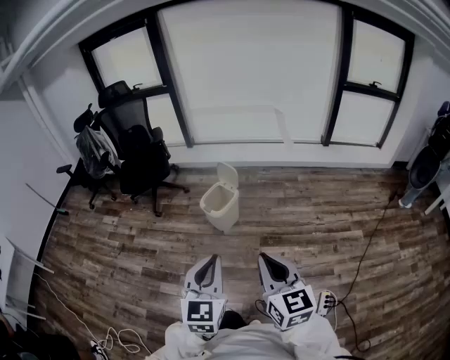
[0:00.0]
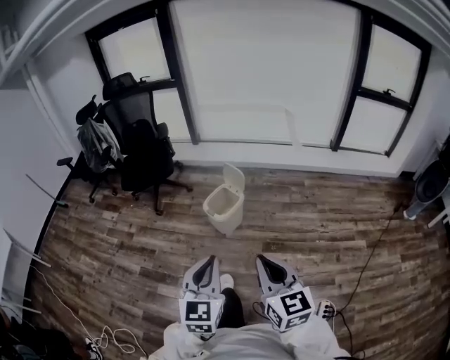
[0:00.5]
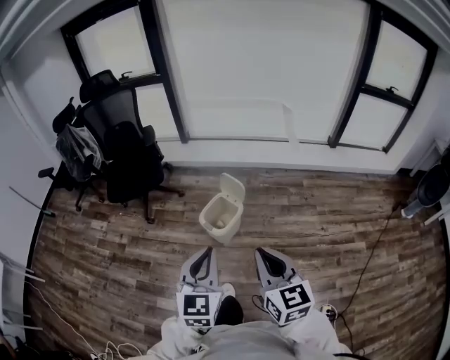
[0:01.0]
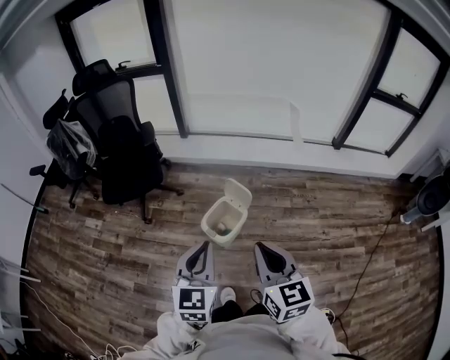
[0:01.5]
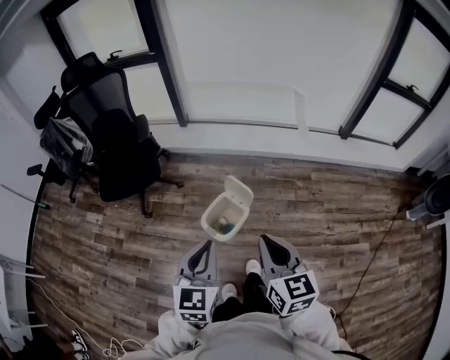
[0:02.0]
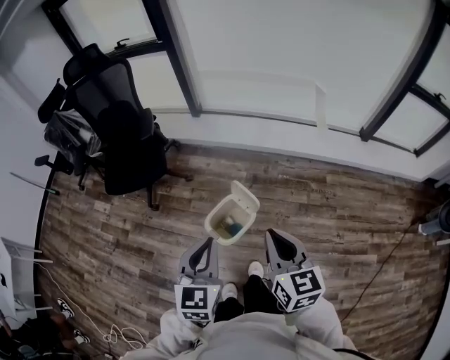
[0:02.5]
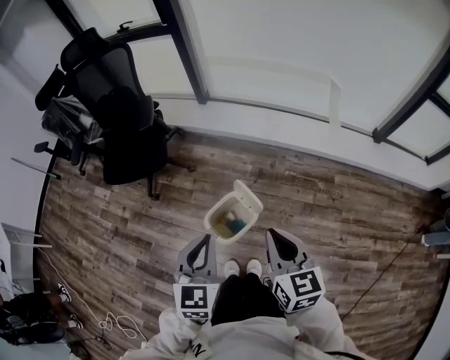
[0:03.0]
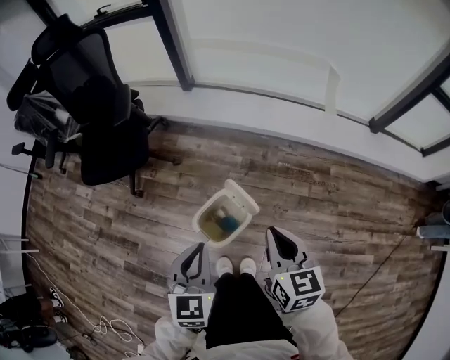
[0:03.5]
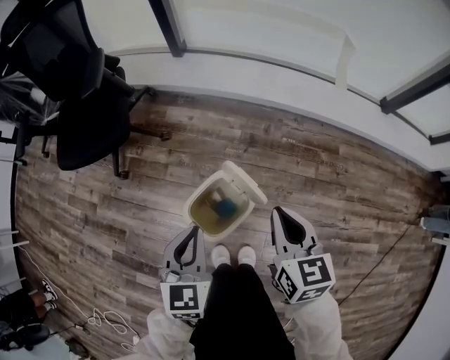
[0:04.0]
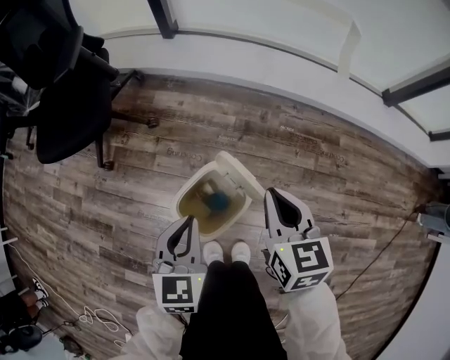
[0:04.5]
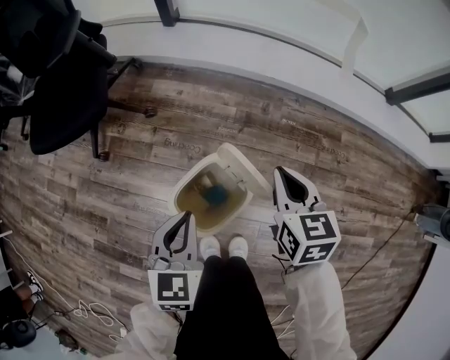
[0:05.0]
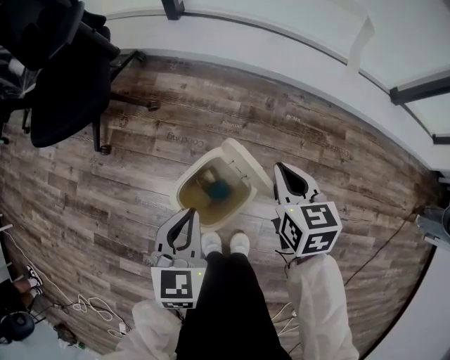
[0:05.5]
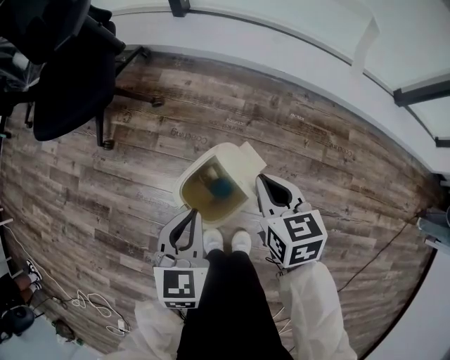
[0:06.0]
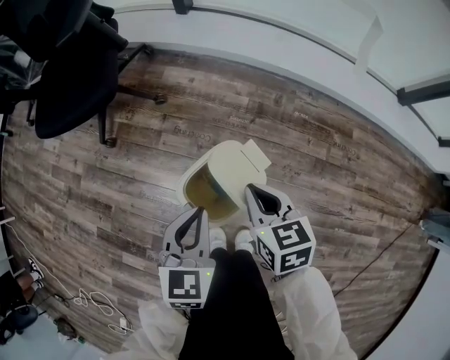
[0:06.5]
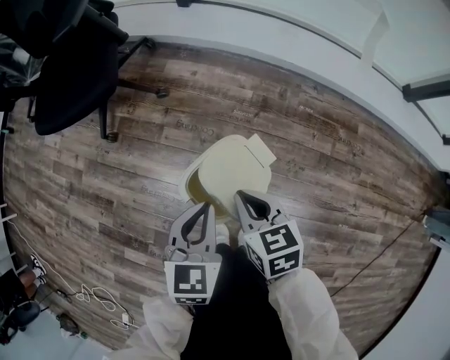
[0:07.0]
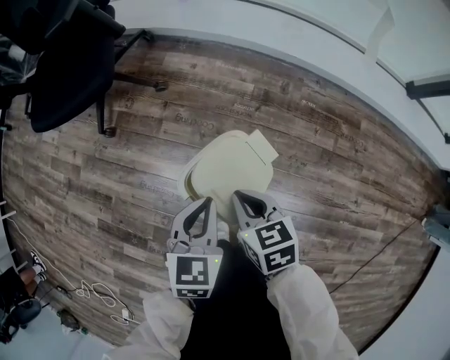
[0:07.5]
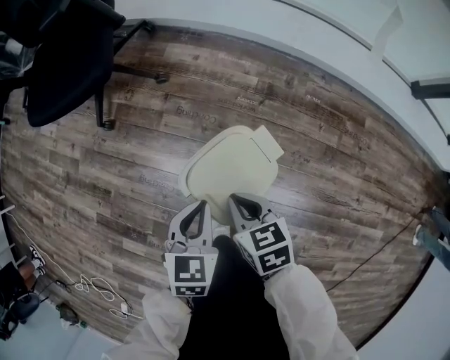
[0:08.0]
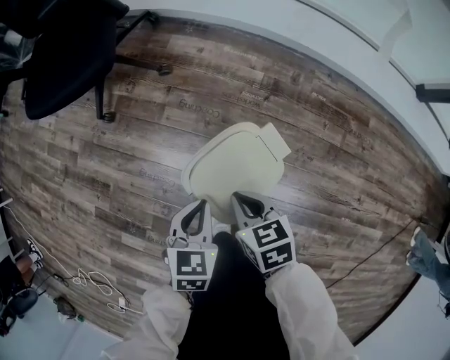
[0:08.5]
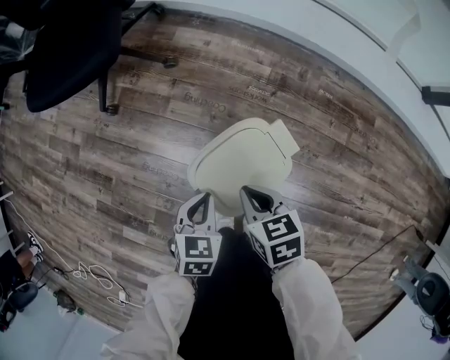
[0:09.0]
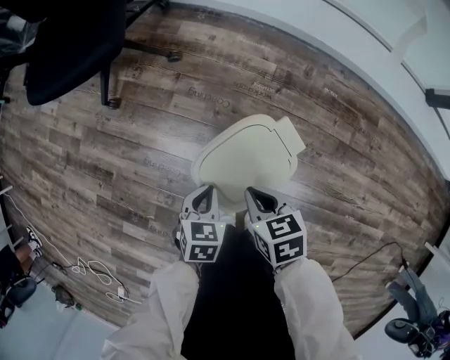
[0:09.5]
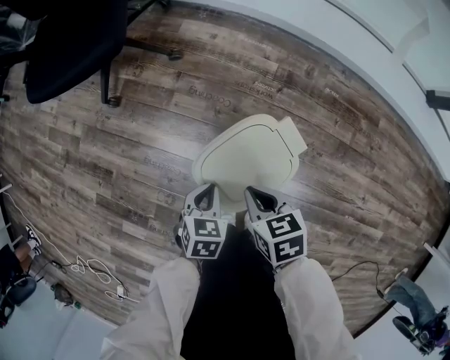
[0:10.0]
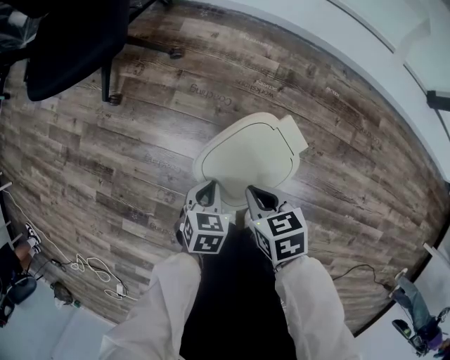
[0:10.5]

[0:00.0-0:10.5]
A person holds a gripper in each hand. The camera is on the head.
0:00.0 to 0:02.0: The pair of grippers is taken forward, approximately 50 cm.
0:02.0 to 0:04.0: Both grippers travel together downward and forward, roughly 40 cm.
0:04.0 to 0:06.5: The left gripper shifts approximately 15 cm downward; the right gripper goes roughly 20 cm downward and to the left.
0:06.5 to 0:08.5: The left gripper goes some 10 cm downward; the right gripper is displaced downward and to the left by some 15 cm.
0:08.5 to 0:10.5: The left gripper heads downward, covering roughly 10 cm.

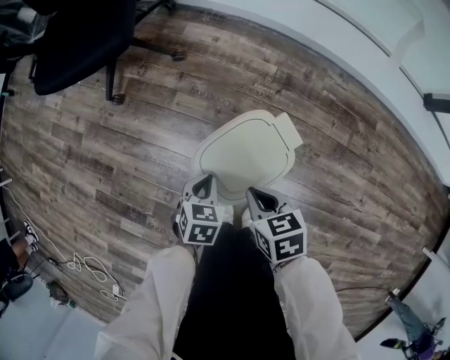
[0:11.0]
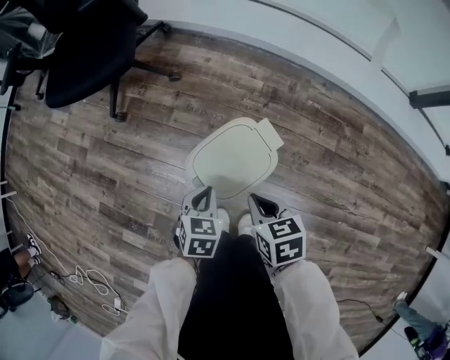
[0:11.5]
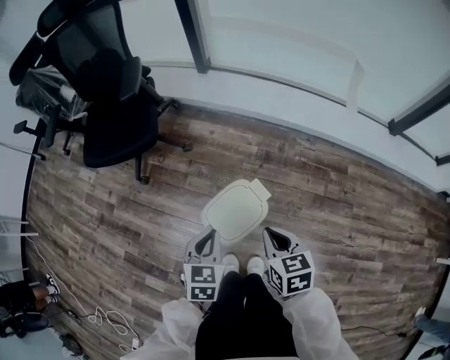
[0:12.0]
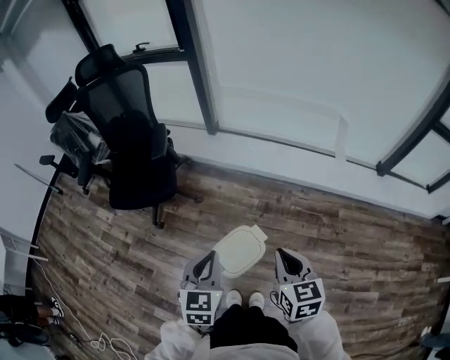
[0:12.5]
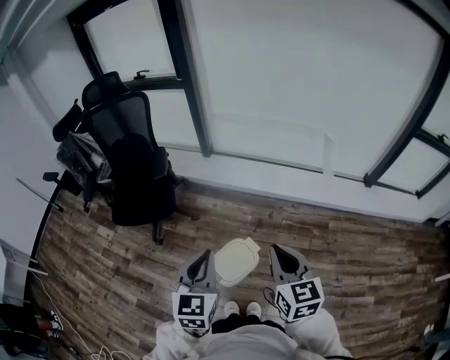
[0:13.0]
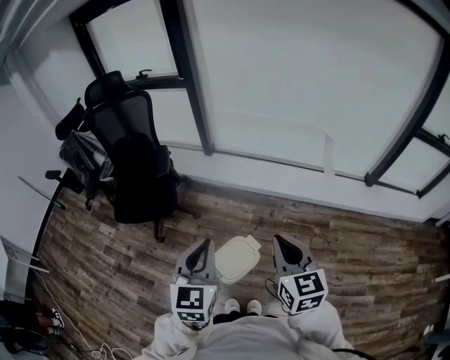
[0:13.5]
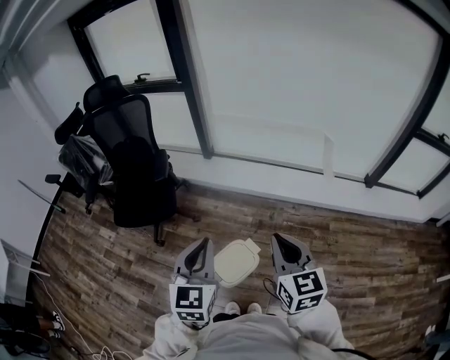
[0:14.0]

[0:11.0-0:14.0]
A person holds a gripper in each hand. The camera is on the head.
0:11.0 to 0:12.5: The two grippers go some 50 cm upward. The right gripper rotates approximately 40 degrees. Meanwhile the left gripper points its fingers some 30 degrees further upward.
0:12.5 to 0:14.0: Both grippers move upward, approximately 15 cm.

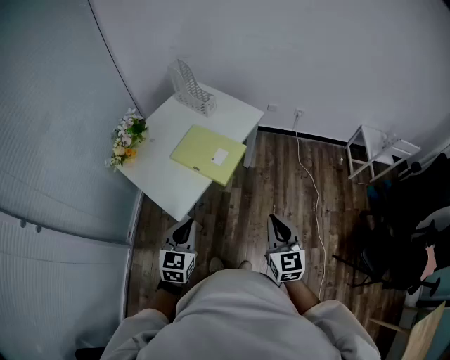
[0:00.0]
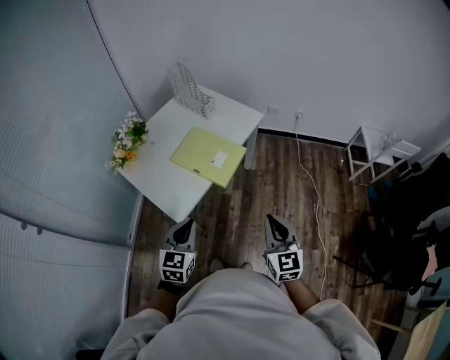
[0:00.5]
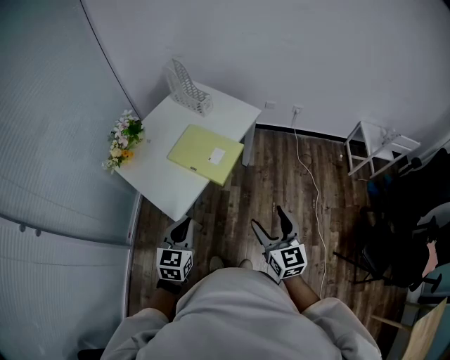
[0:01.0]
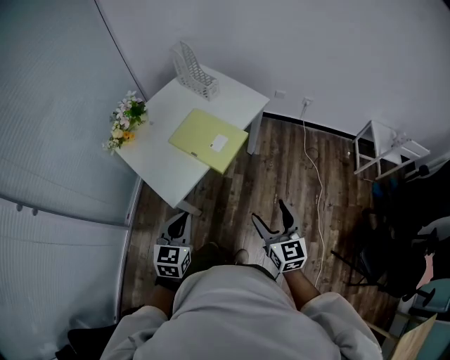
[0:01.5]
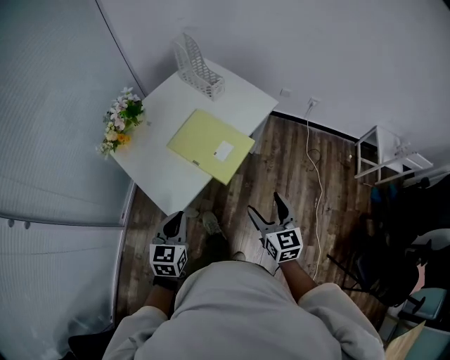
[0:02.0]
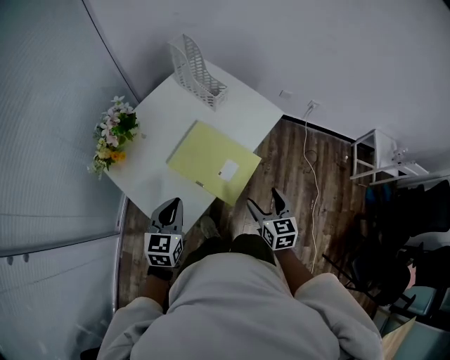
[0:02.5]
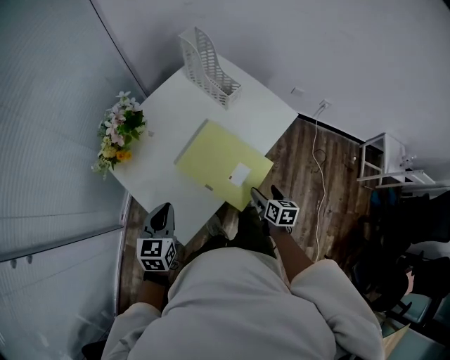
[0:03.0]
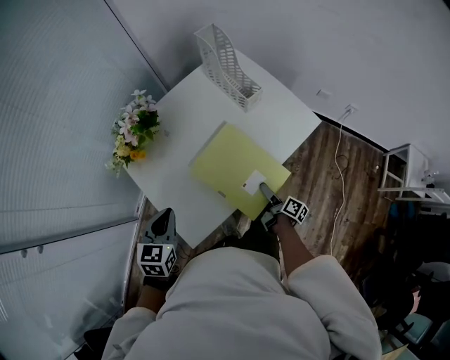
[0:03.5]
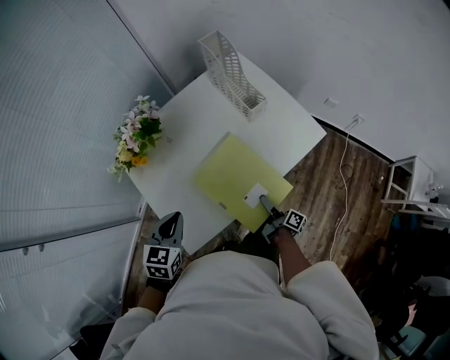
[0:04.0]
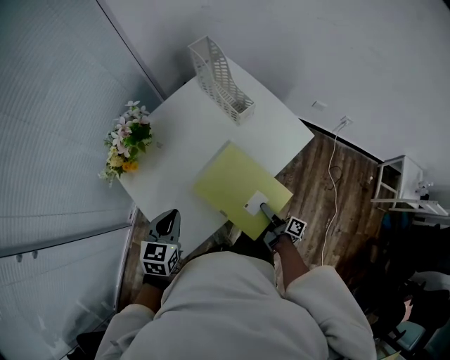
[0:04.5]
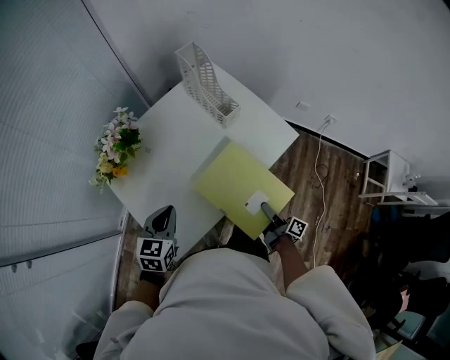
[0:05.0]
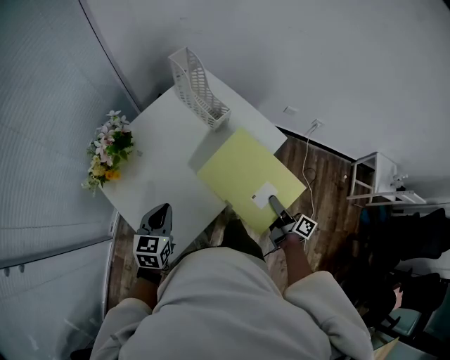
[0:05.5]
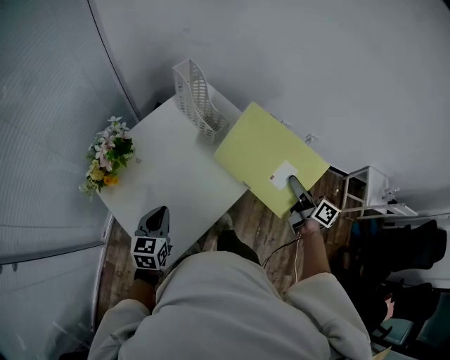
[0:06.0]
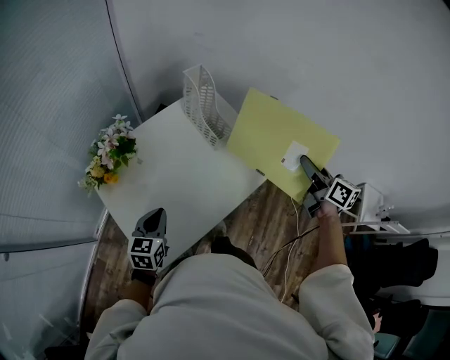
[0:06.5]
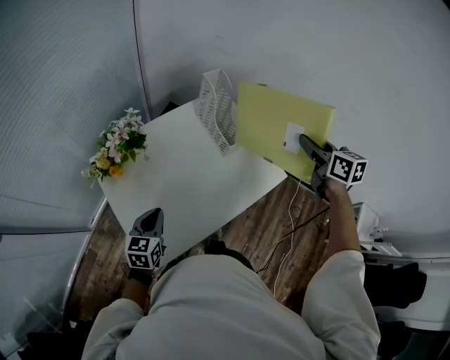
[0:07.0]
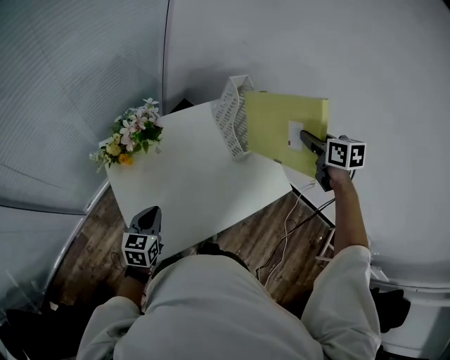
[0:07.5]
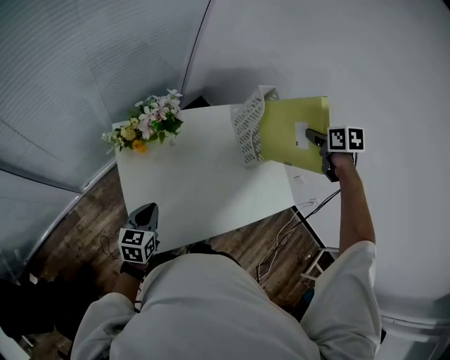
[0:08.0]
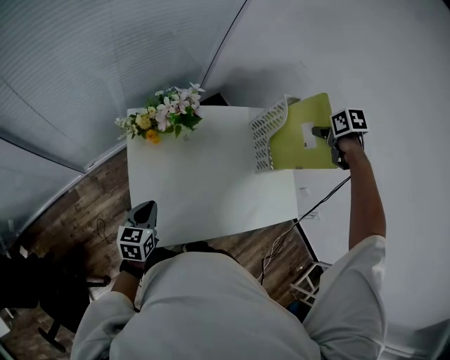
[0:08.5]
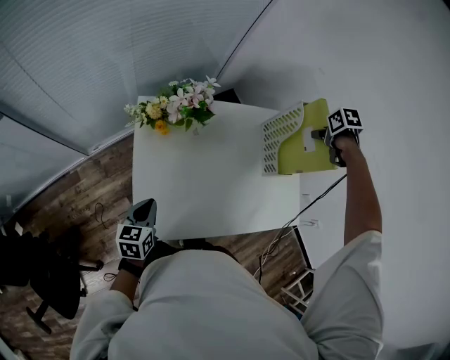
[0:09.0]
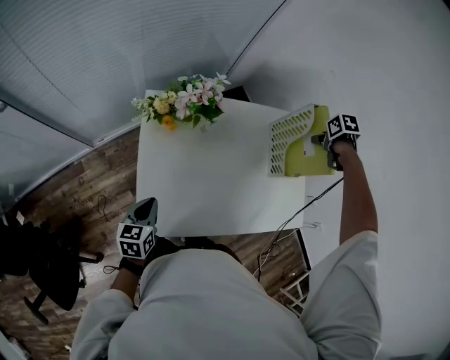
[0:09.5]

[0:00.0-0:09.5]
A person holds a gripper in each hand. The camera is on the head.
0:00.0 to 0:02.0: The right gripper goes approximately 15 cm forward and downward, and opens up, while the left gripper is displaced forward and downward by approximately 10 cm.
0:02.0 to 0:04.0: The left gripper travels forward by some 20 cm. Meanwhile the right gripper moves downward and forward, approximately 35 cm, rotates around the line of its fingers by approximately 80 degrees, clockwise from behind, and closes.
0:04.0 to 0:05.5: The left gripper ends up roughly 5 cm from where it was, while the right gripper heads upward and to the right, covering some 20 cm, and changes its angle by some 30 degrees.
0:05.5 to 0:07.5: The right gripper travels forward and upward by some 40 cm, and twists approximately 60 degrees counterclockwise, seen from behind. The left gripper shifts roughly 10 cm to the left, and turns by about 20 degrees.
0:07.5 to 0:09.5: The left gripper changes place by roughly 10 cm, and turns by some 30 degrees, while the right gripper shifts by about 25 cm, and tips its fingers downward by approximately 40 degrees.

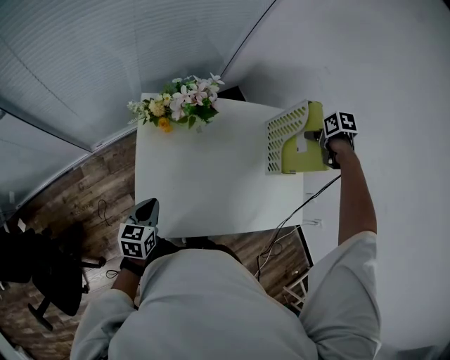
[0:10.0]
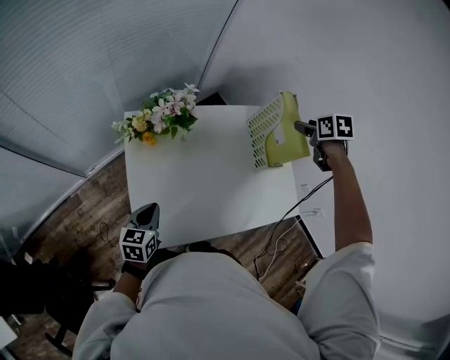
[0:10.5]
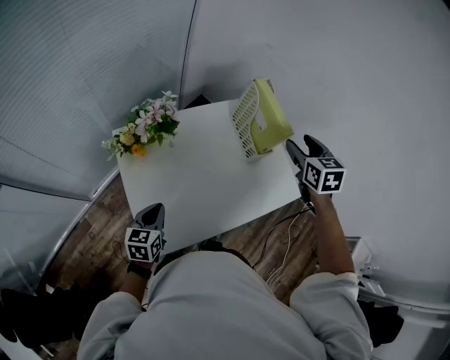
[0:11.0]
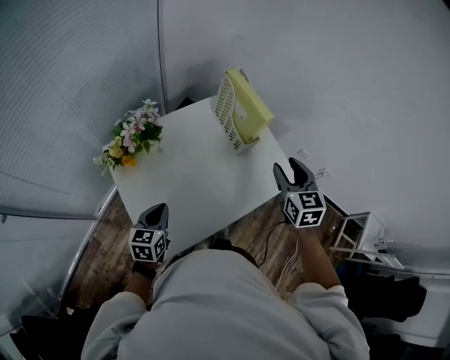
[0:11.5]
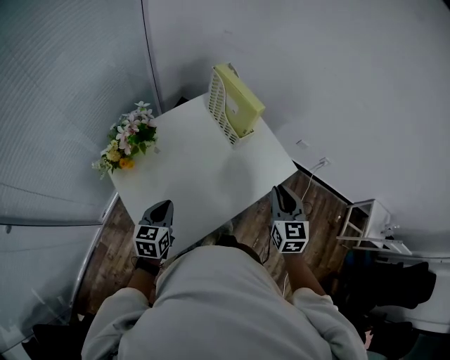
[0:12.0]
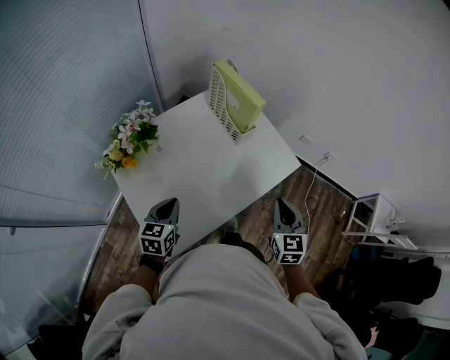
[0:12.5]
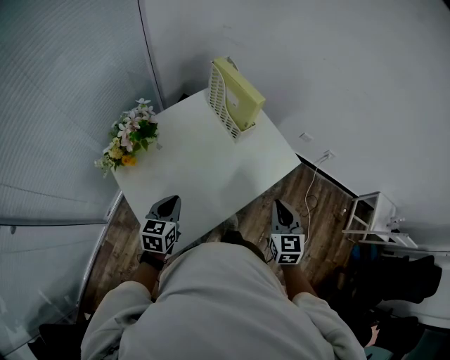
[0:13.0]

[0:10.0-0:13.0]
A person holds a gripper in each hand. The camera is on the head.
0:10.0 to 0:11.5: The left gripper ends up approximately 10 cm from where it was, and rotates about 30 degrees. The right gripper moves about 30 cm, and tips its fingers upward by approximately 50 degrees.
0:11.5 to 0:13.0: The right gripper moves backward and downward, roughly 15 cm, and closes up.
